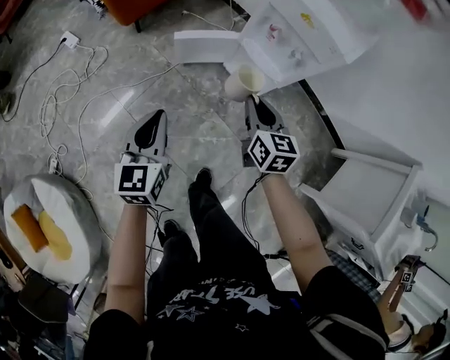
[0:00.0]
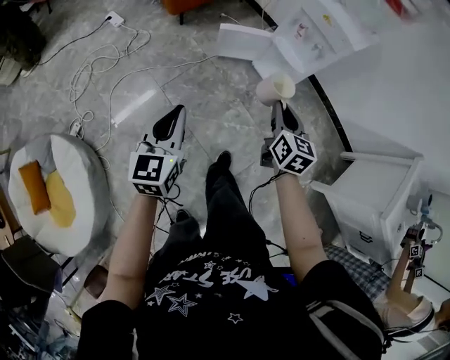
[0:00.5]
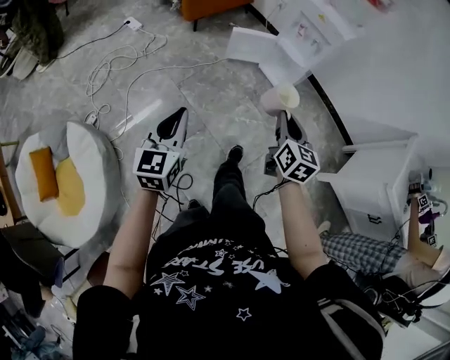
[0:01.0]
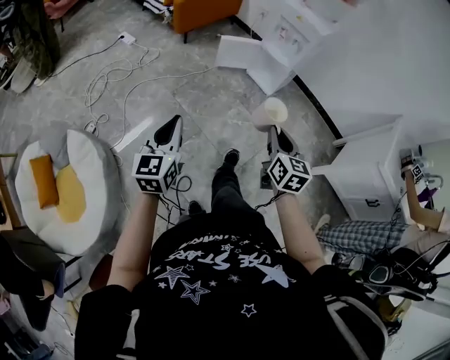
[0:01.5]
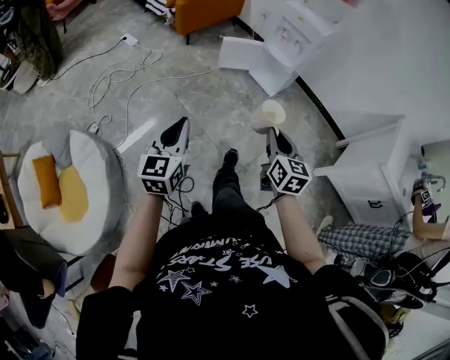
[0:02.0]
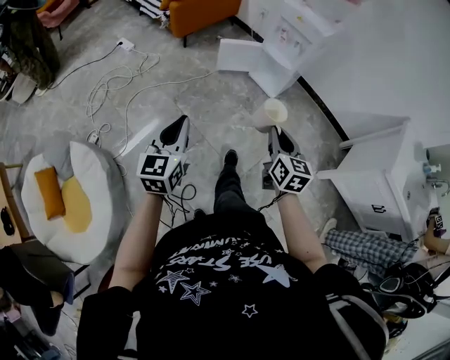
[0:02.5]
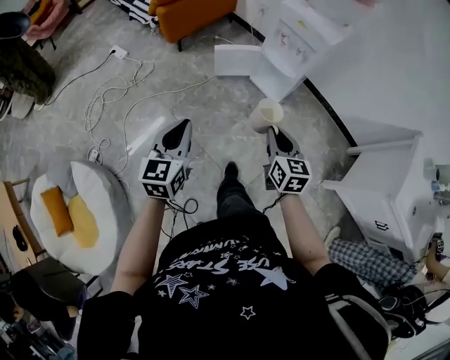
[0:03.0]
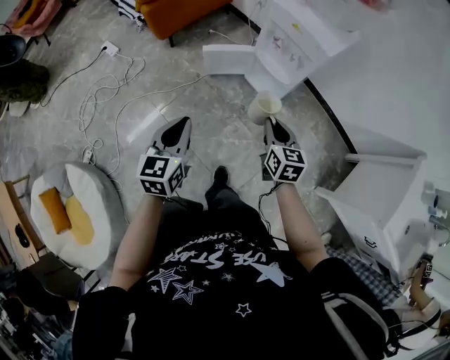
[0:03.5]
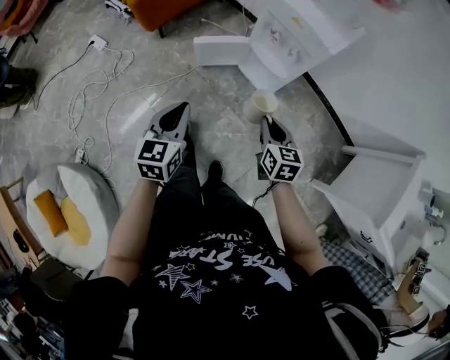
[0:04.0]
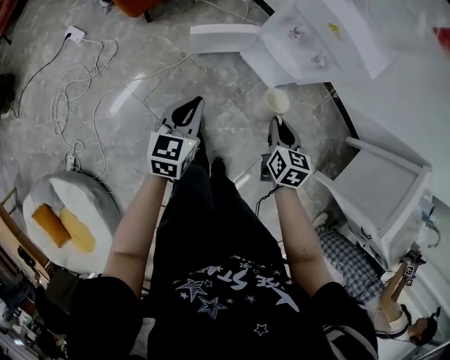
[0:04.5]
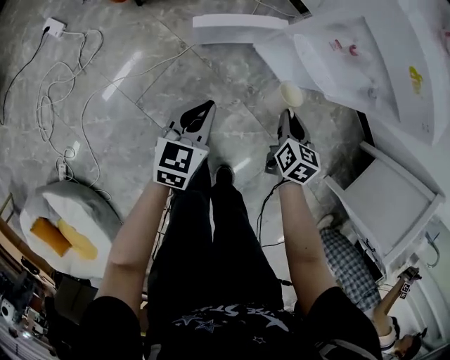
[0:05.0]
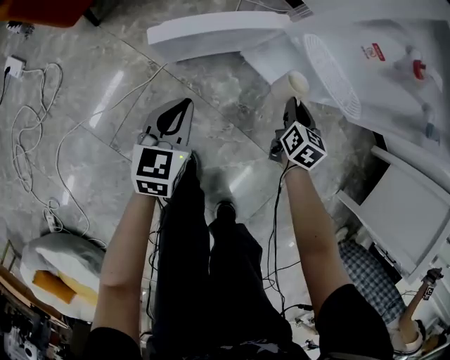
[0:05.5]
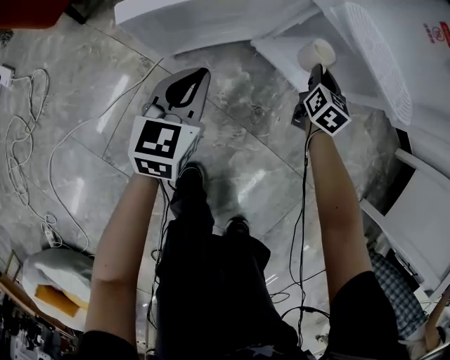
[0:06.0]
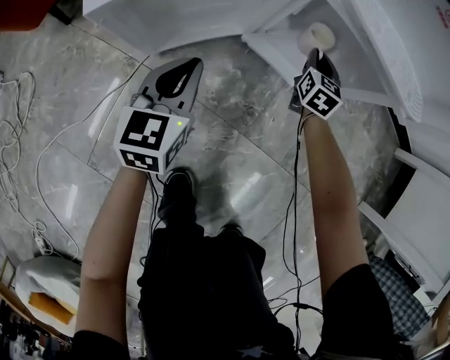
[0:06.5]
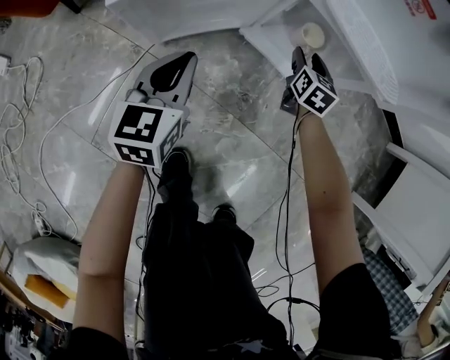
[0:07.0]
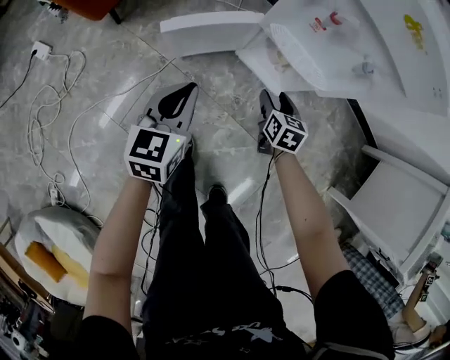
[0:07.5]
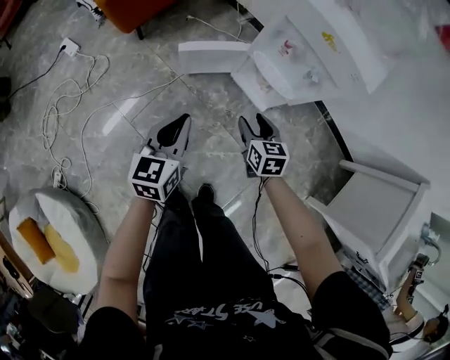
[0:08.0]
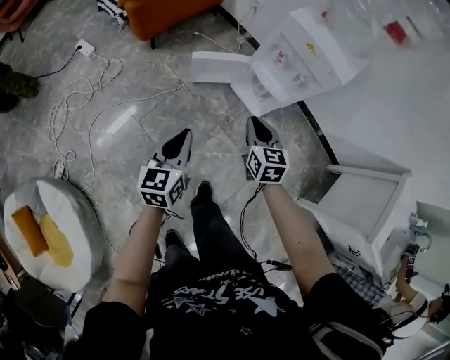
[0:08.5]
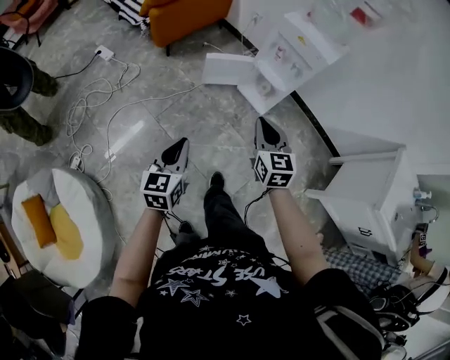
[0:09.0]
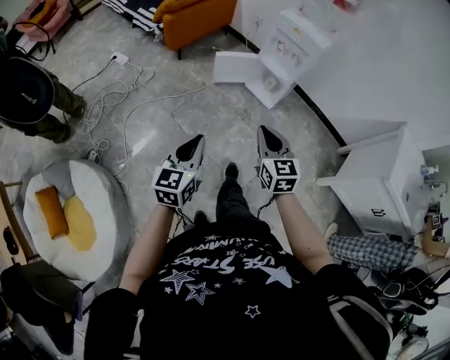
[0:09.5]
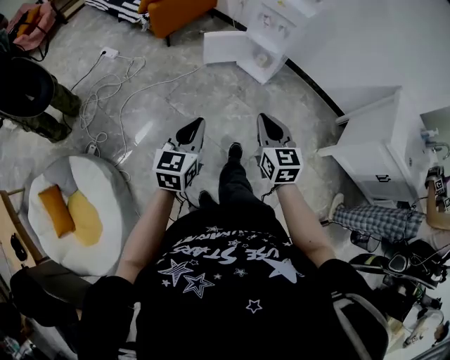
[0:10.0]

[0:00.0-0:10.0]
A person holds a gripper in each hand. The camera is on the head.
0:00.0 to 0:02.0: The pair of grippers is taken backward, about 50 cm.
0:02.0 to 0:04.0: The two grippers go some 40 cm forward.
0:04.0 to 0:06.0: Both grippers move downward, about 50 cm. The right gripper changes its angle by some 30 degrees.
0:06.0 to 0:08.0: Both grippers travel together upward, roughly 40 cm. The right gripper swivels roughly 30 degrees, and opens up.
0:08.0 to 0:10.0: The two grippers travel together, backward, about 50 cm. The right gripper is displaced upward by approximately 30 cm, rotates approximately 30 degrees, and closes; the left gripper heads upward, covering some 20 cm.

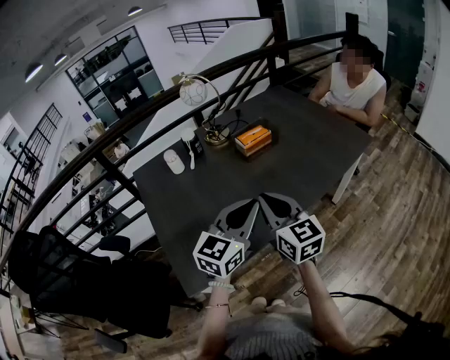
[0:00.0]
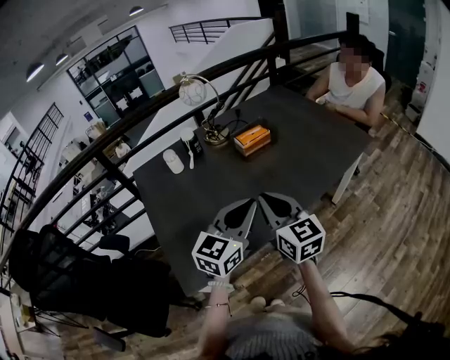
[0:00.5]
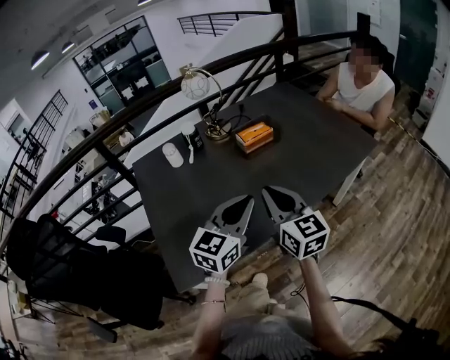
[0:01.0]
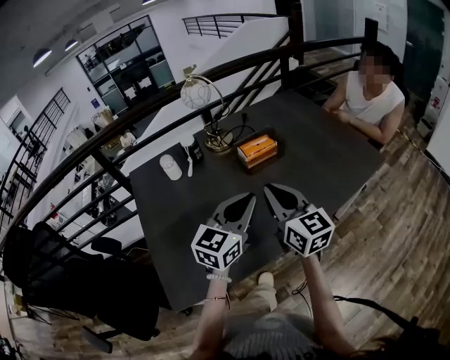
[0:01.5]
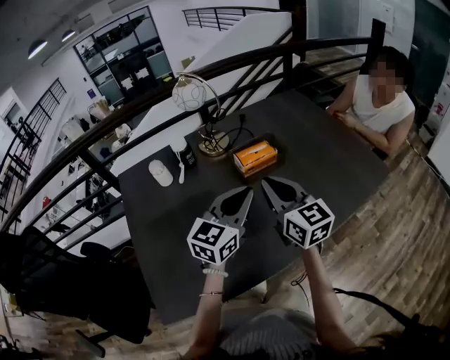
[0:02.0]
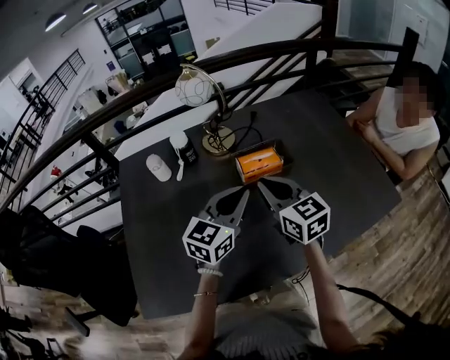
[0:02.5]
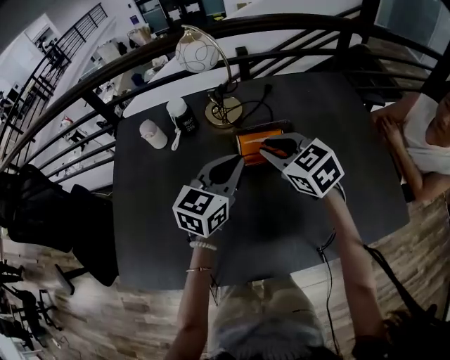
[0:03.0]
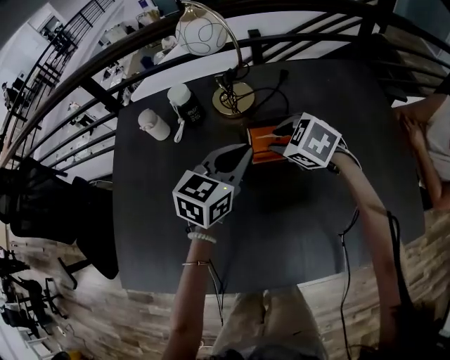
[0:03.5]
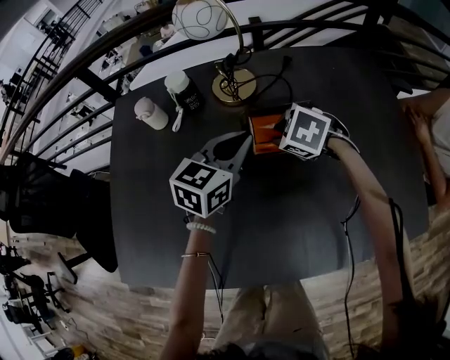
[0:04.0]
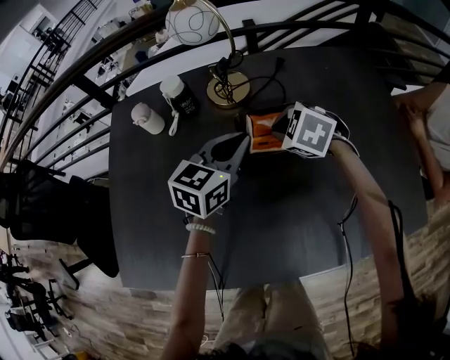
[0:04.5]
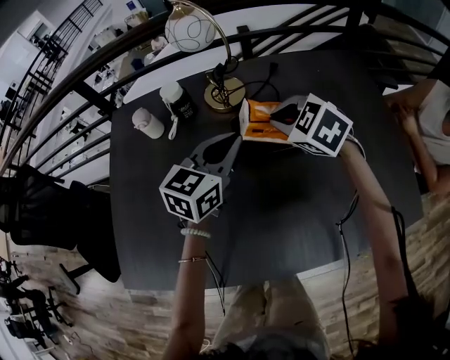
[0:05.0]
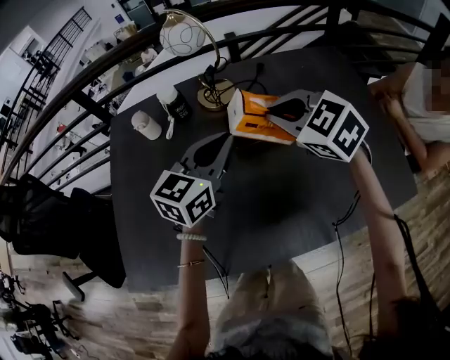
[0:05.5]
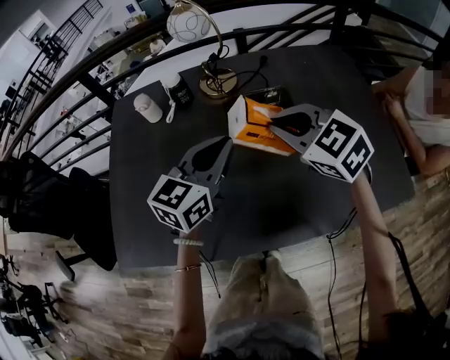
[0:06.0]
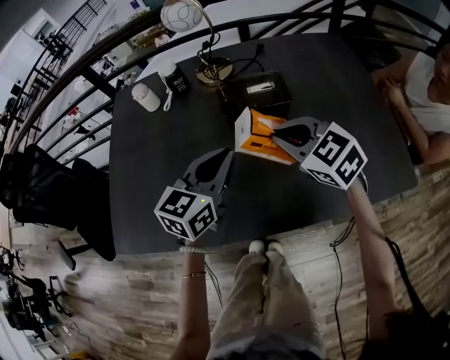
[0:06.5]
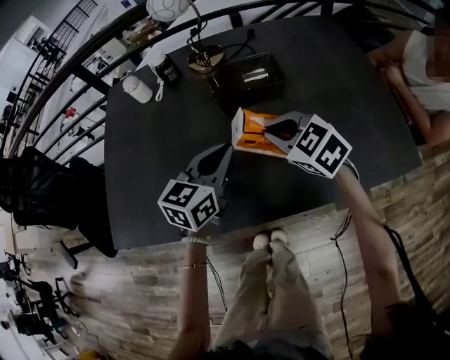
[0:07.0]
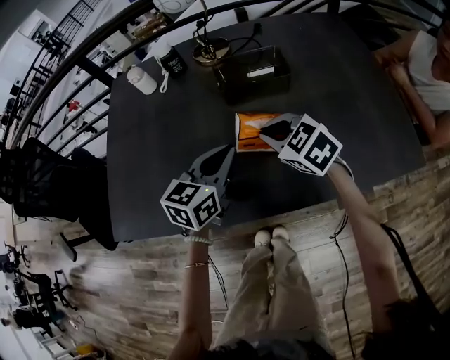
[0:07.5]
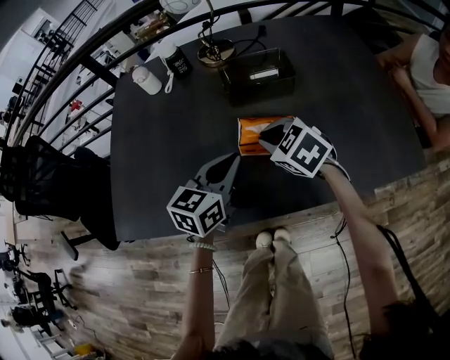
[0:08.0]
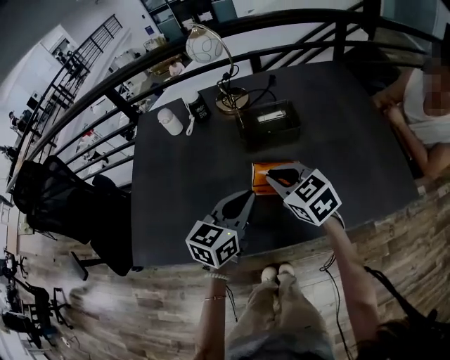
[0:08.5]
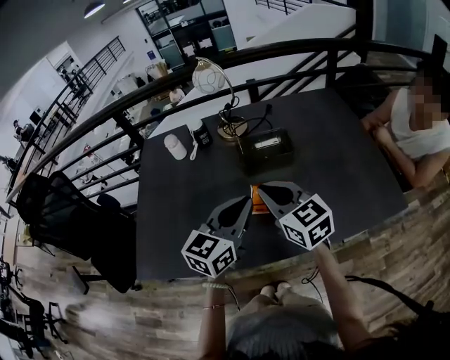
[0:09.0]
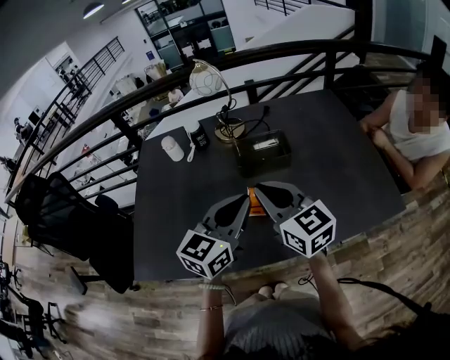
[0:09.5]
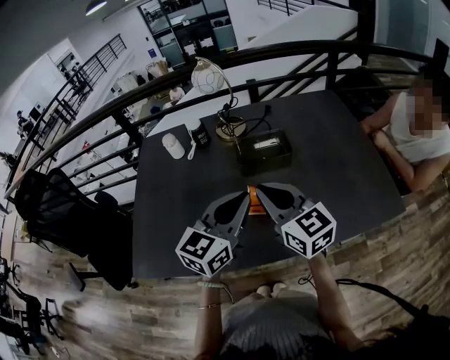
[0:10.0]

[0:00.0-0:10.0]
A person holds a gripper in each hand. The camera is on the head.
0:00.0 to 0:02.0: Both grippers travel together forward, roughly 20 cm.
0:02.0 to 0:04.0: The left gripper ends up some 20 cm from where it was, and changes its angle by about 20 degrees, while the right gripper ends up roughly 30 cm from where it was, angles its fingers downward, by some 60 degrees, and opens up.
0:04.0 to 0:06.0: The left gripper heads backward and upward, covering approximately 15 cm. The right gripper moves upward and backward, some 20 cm, points its fingers approximately 30 degrees further upward, and closes.
0:06.0 to 0:08.0: Both grippers travel together downward and backward, roughly 15 cm.
0:08.0 to 0:10.0: Both grippers move upward, about 20 cm. The right gripper angles its fingers upward, by roughly 40 degrees.

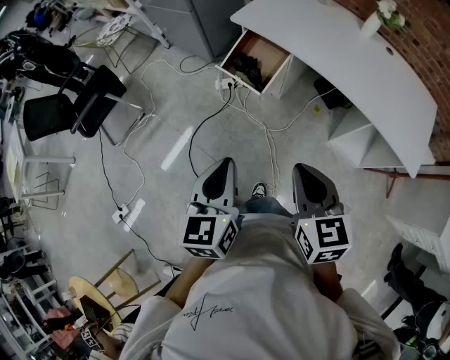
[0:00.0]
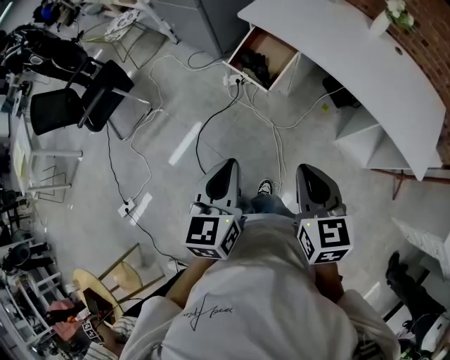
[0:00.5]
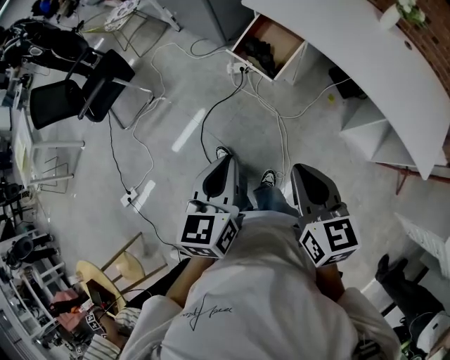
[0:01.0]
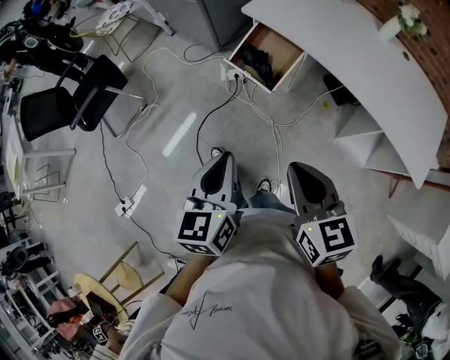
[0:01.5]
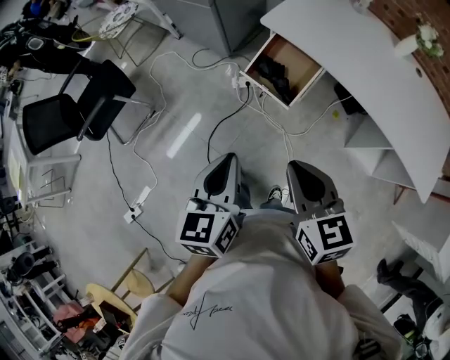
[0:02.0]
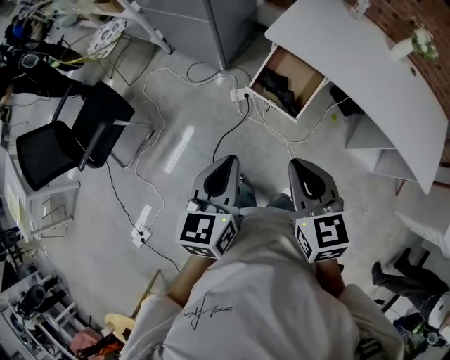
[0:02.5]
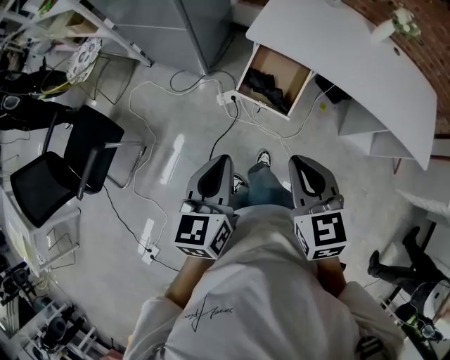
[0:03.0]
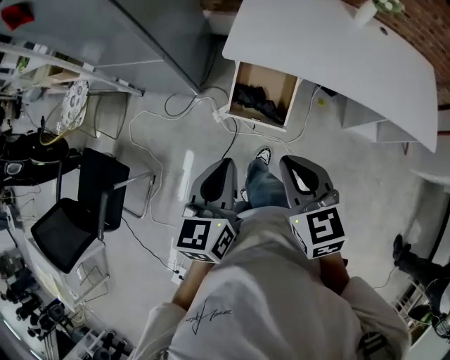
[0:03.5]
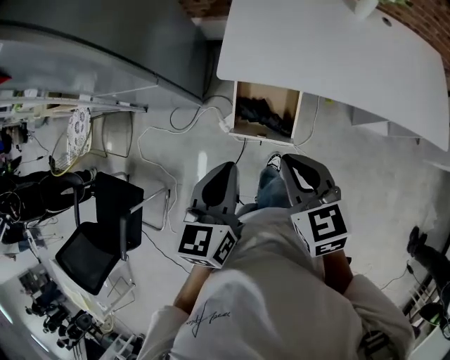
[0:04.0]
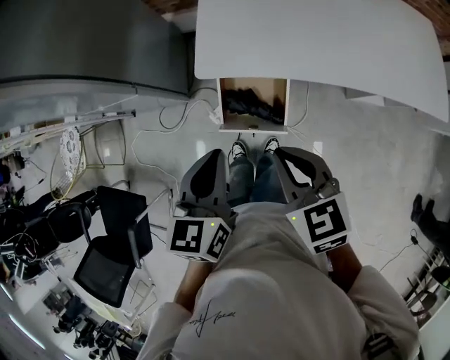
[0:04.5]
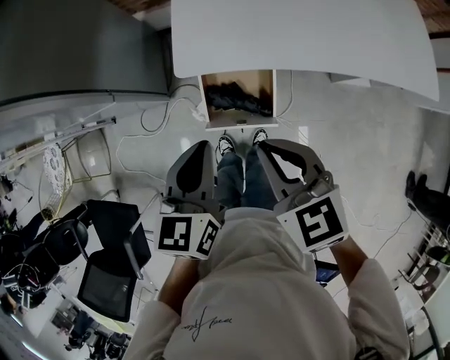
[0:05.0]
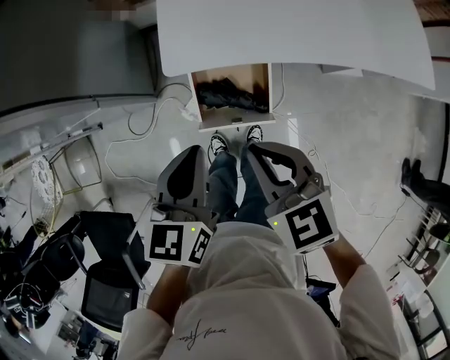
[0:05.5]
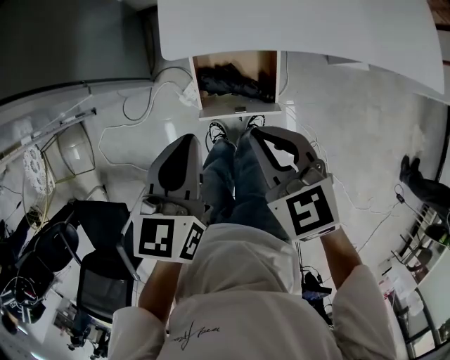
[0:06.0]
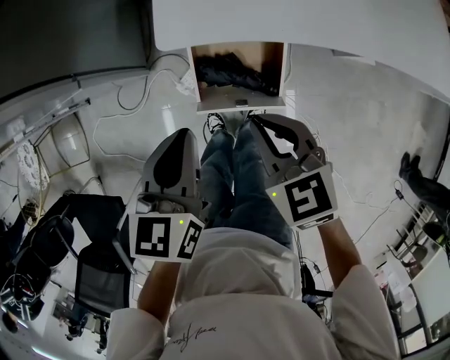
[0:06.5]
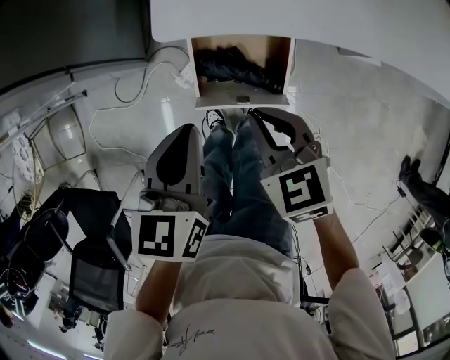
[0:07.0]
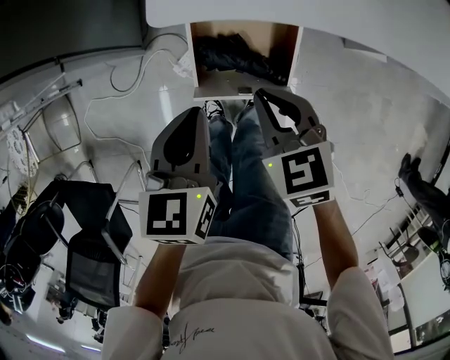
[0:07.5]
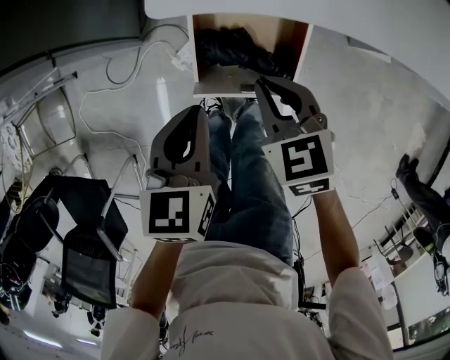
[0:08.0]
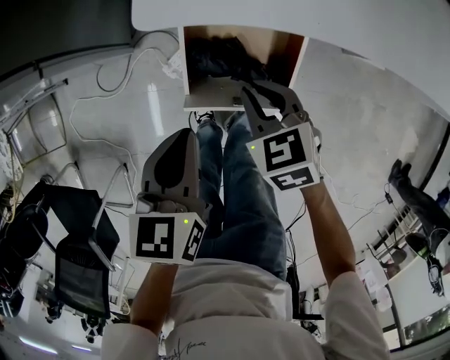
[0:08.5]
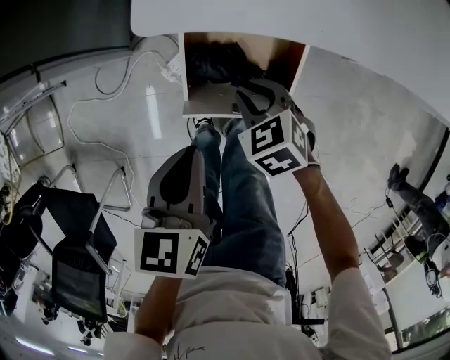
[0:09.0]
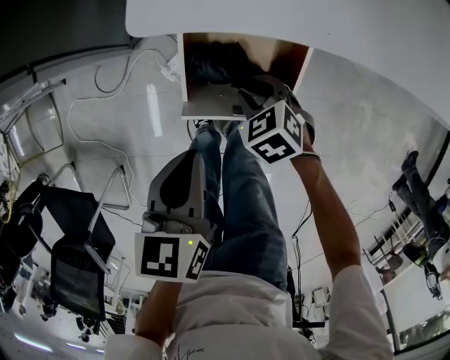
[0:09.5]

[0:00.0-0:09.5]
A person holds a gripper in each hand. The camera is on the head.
0:00.0 to 0:02.0: Both grippers travel together forward and to the left, some 20 cm.
0:02.0 to 0:04.0: The right gripper changes place by about 25 cm, and rotates approximately 20 degrees, while the left gripper moves roughly 30 cm, and turns by roughly 30 degrees.
0:04.0 to 0:05.5: The grippers both shift forward and downward by roughly 10 cm.
0:05.5 to 0:07.5: The two grippers go some 15 cm downward.
0:07.5 to 0:09.5: The left gripper is displaced downward by about 5 cm; the right gripper moves downward, some 20 cm, turns by approximately 20 degrees, and opens its fingers.
